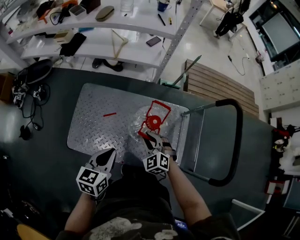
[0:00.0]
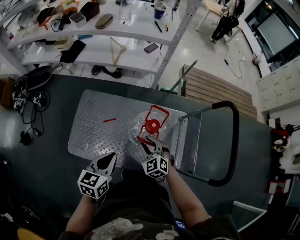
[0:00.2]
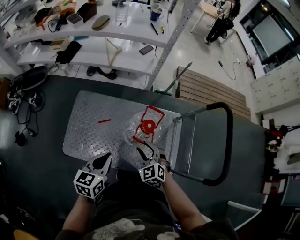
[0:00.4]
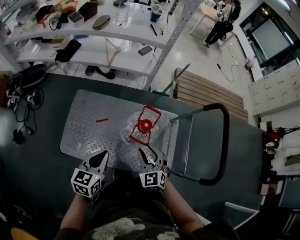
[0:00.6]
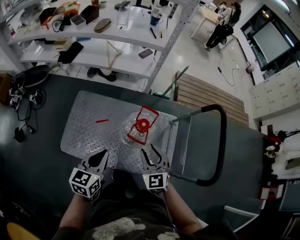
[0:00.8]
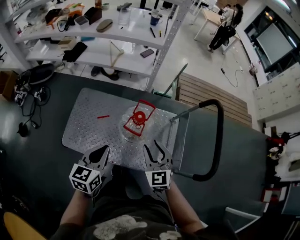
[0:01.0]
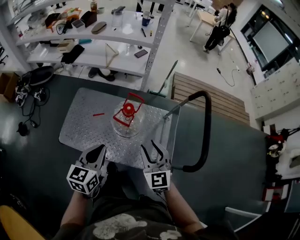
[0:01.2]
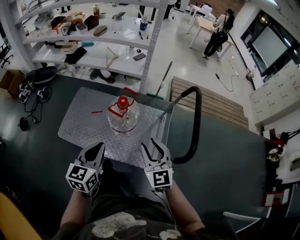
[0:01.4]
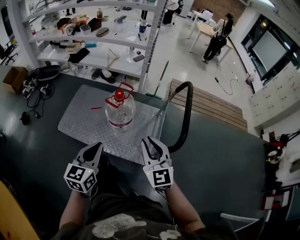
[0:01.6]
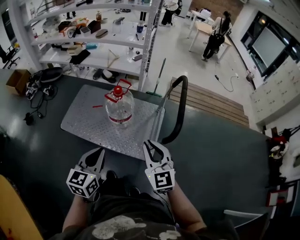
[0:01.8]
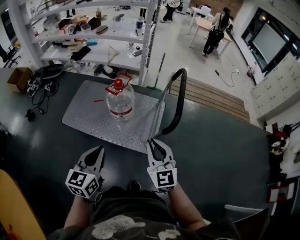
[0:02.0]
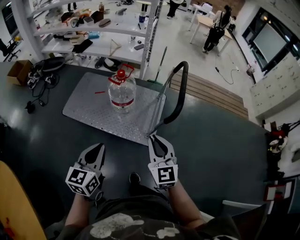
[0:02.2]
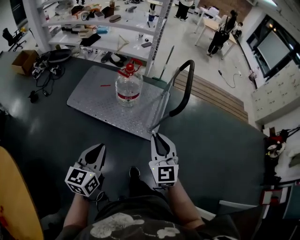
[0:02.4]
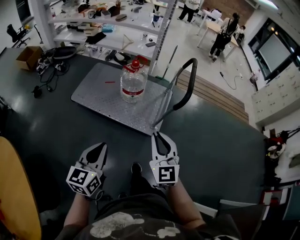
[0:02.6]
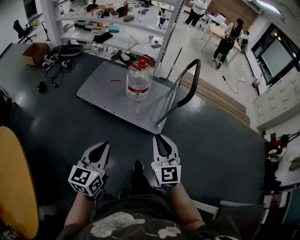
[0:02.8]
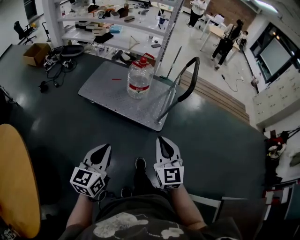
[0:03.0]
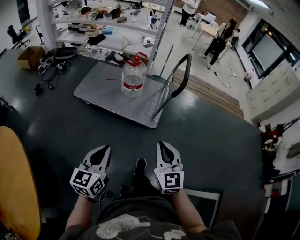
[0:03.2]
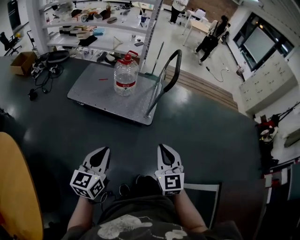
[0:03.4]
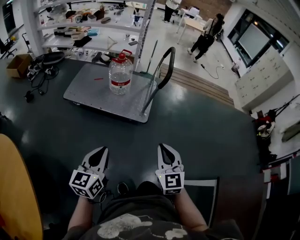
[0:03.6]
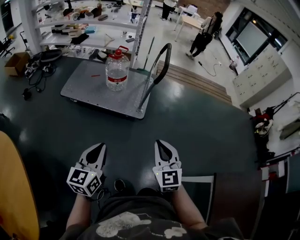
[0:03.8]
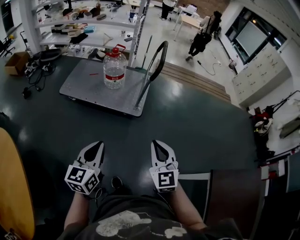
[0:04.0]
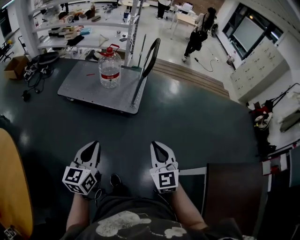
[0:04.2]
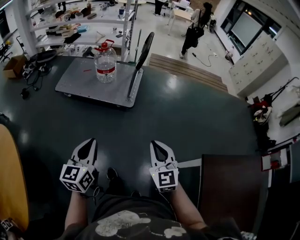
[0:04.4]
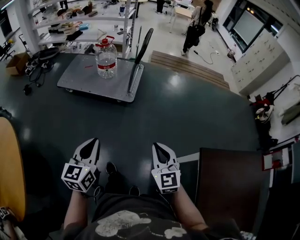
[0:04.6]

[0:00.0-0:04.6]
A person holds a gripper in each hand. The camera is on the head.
0:00.0 to 0:01.6: The right gripper heads backward, upward and to the right, covering some 50 cm, and points its fingers roughly 30 degrees further upward; the left gripper heads backward, to the right and upward, covering roughly 35 cm, and rotates about 20 degrees.
0:01.6 to 0:03.0: Both grippers move backward, about 40 cm.
0:03.0 to 0:04.6: Both grippers travel together backward and to the right, approximately 35 cm.

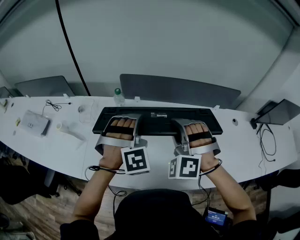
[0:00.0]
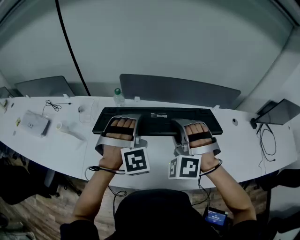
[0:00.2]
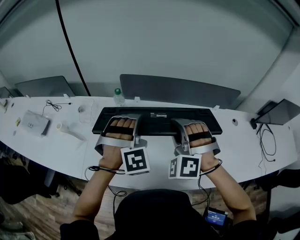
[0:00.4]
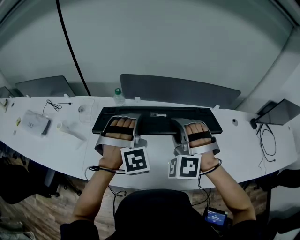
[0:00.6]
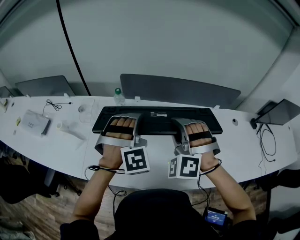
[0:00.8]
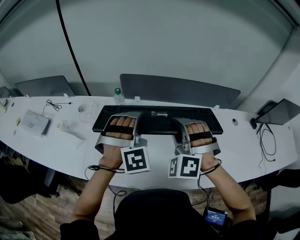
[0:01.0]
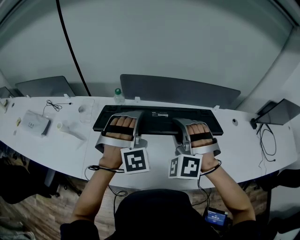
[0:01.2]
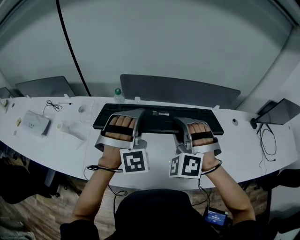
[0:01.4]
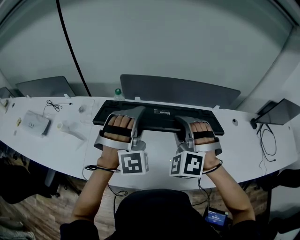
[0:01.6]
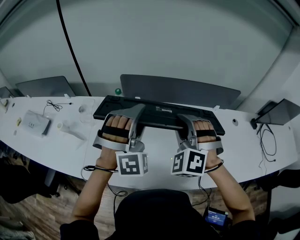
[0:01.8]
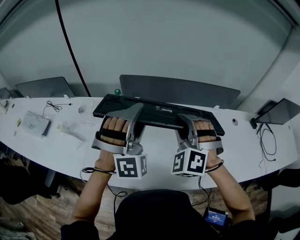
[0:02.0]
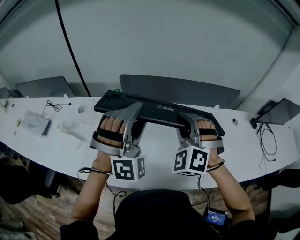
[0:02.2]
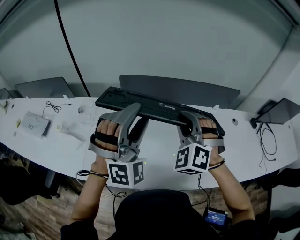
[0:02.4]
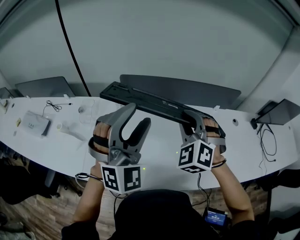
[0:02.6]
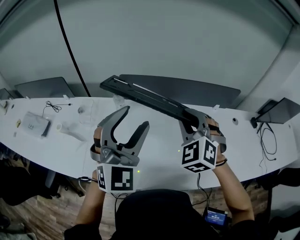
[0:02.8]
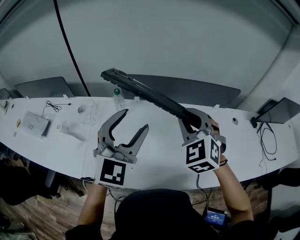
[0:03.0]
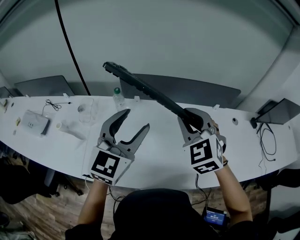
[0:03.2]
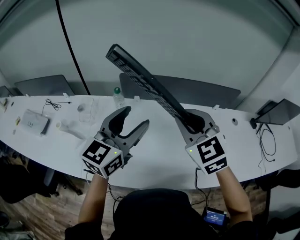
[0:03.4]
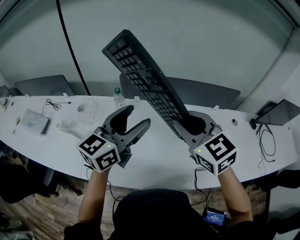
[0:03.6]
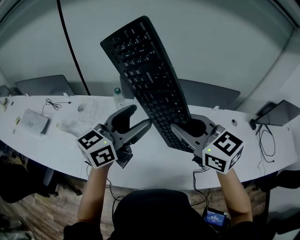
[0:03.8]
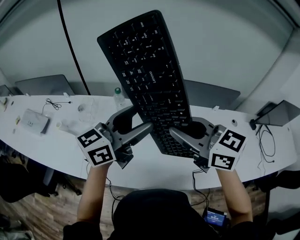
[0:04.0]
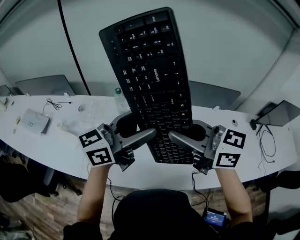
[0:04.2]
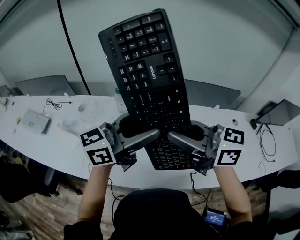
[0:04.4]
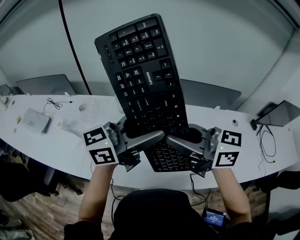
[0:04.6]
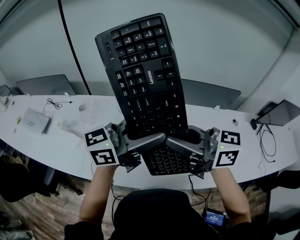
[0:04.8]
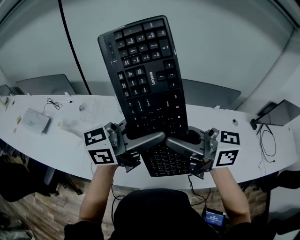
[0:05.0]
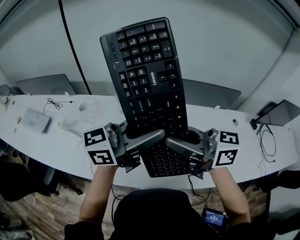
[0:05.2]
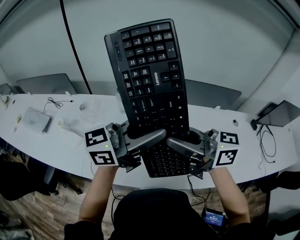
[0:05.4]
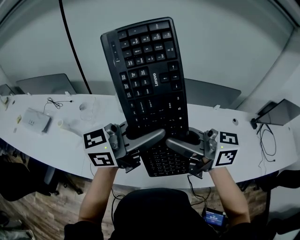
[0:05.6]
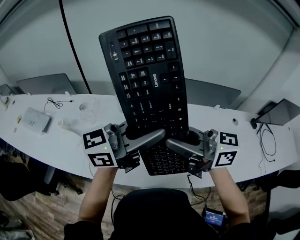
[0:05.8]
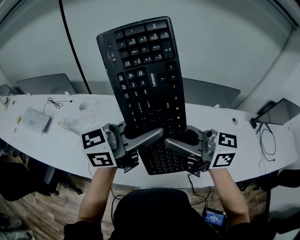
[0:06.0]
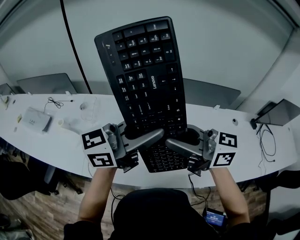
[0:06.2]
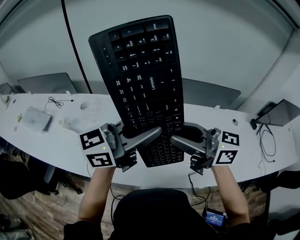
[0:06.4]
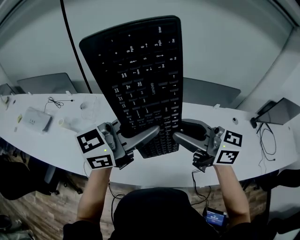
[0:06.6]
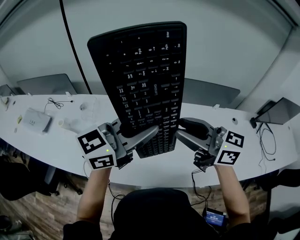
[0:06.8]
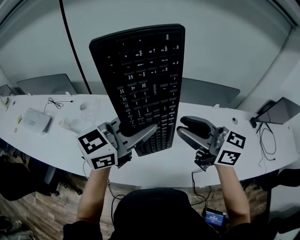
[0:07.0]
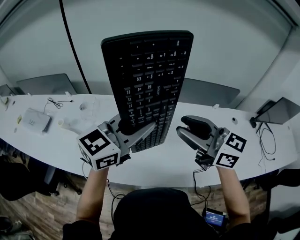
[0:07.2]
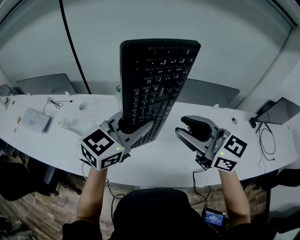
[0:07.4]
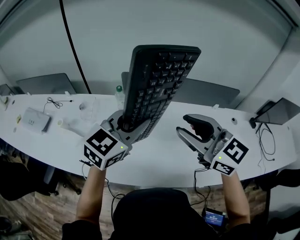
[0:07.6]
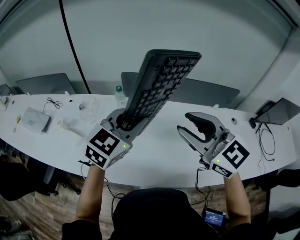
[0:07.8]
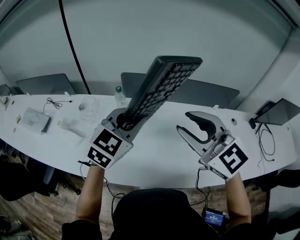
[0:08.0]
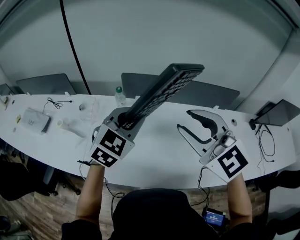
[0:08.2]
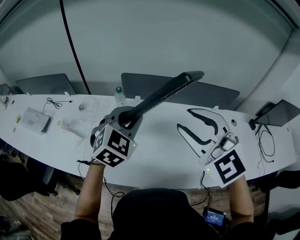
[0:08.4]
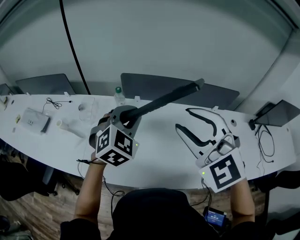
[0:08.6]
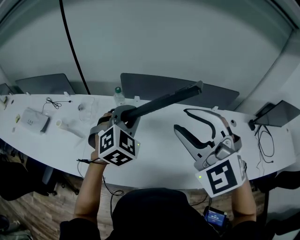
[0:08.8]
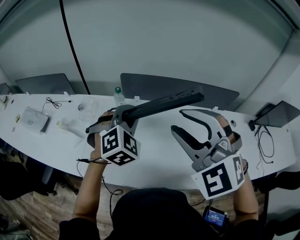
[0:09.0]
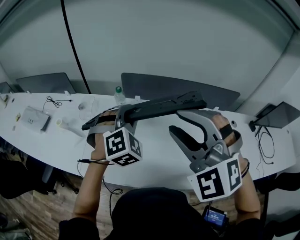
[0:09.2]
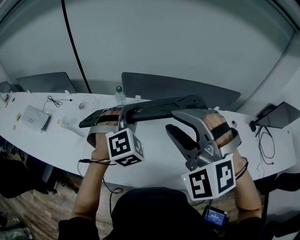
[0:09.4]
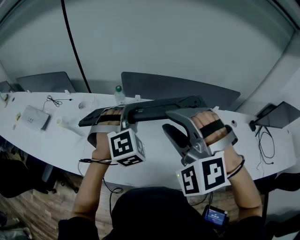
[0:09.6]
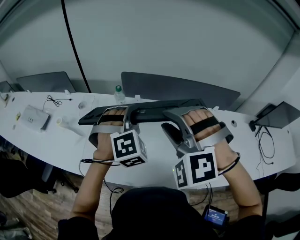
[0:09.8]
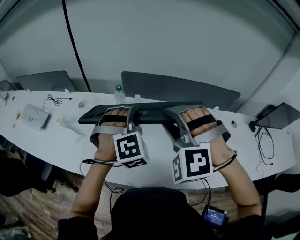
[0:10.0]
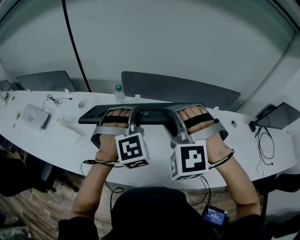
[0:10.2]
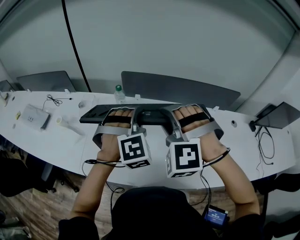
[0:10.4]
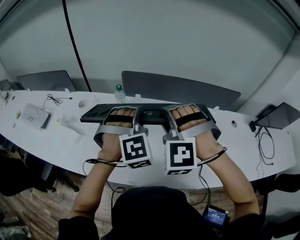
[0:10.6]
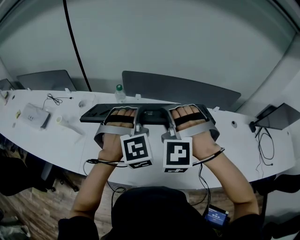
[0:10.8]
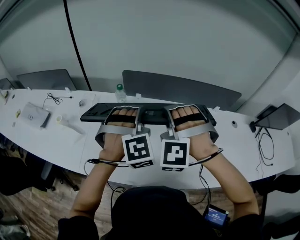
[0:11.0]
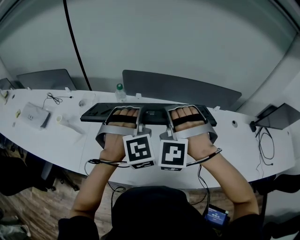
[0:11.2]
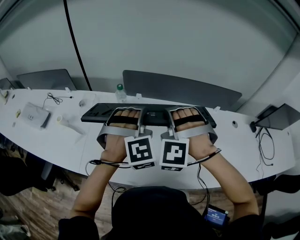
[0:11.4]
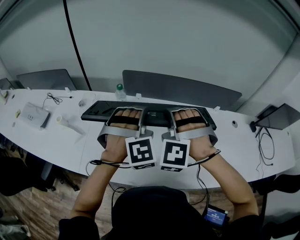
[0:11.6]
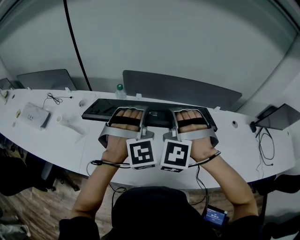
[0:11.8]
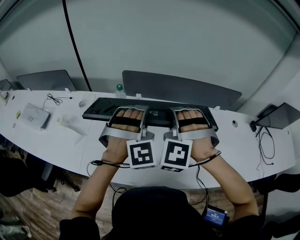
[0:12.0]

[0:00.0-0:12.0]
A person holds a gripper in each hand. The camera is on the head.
0:00.0 to 0:01.6: There are only small adjustments of the grippers.
0:01.6 to 0:03.0: The left gripper shifts approximately 5 cm upward, and rotates around the line of its fingers by some 50 degrees, counterclockwise from behind. Meanwhile the right gripper changes its angle by roughly 30 degrees.
0:03.0 to 0:04.4: The right gripper moves some 15 cm, and swivels roughly 80 degrees. The left gripper shifts by roughly 5 cm, and changes its angle by some 60 degrees.
0:04.4 to 0:06.0: The left gripper closes.
0:06.0 to 0:07.6: The right gripper ends up approximately 5 cm from where it was, and changes its angle by roughly 40 degrees; the left gripper moves about 10 cm, and rotates some 40 degrees.
0:07.6 to 0:09.0: The right gripper changes place by approximately 5 cm, and rotates around the line of its fingers by some 50 degrees, counterclockwise from behind. Meanwhile the left gripper heads downward, covering about 5 cm, and rotates approximately 50 degrees.
0:09.0 to 0:10.4: The left gripper changes its angle by some 20 degrees, while the right gripper is displaced downward and forward by approximately 10 cm, and changes its angle by some 30 degrees.
0:10.4 to 0:12.0: There are only small adjustments of the grippers.

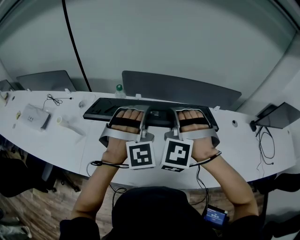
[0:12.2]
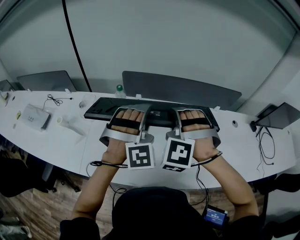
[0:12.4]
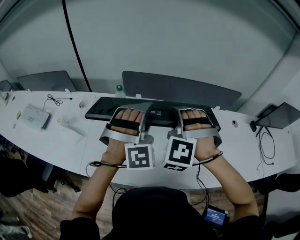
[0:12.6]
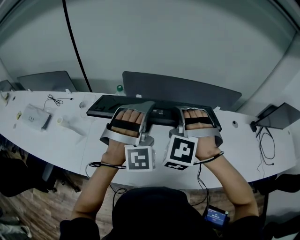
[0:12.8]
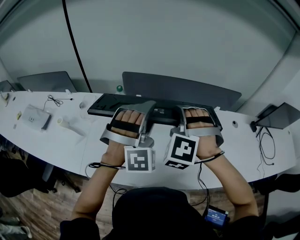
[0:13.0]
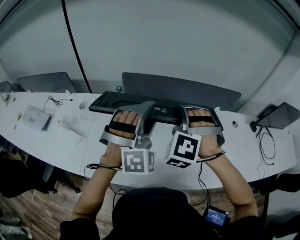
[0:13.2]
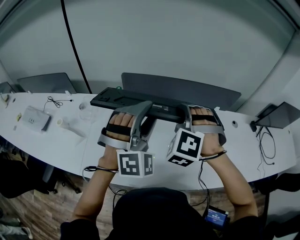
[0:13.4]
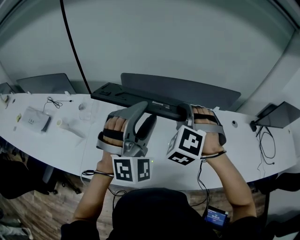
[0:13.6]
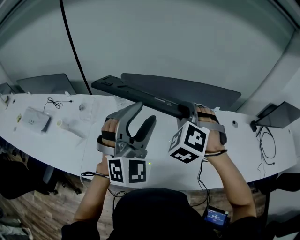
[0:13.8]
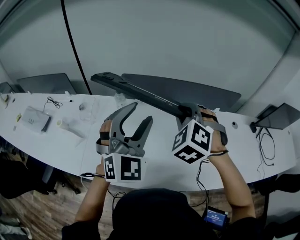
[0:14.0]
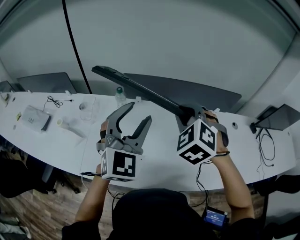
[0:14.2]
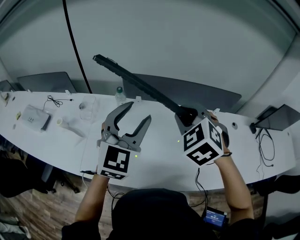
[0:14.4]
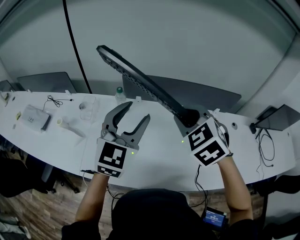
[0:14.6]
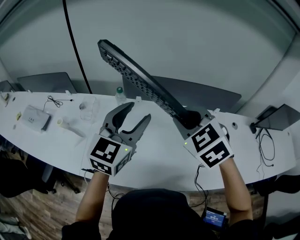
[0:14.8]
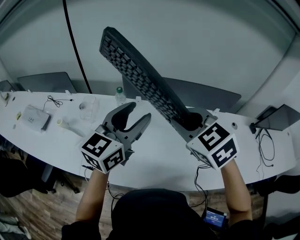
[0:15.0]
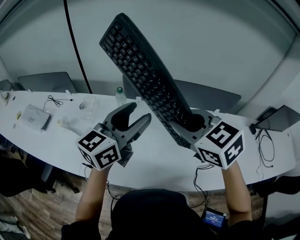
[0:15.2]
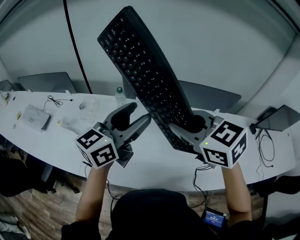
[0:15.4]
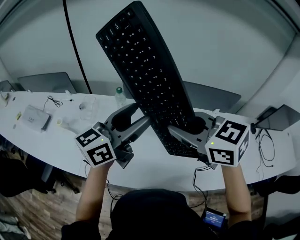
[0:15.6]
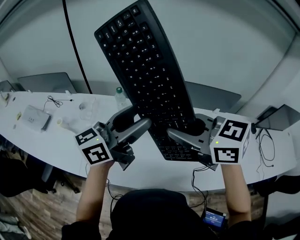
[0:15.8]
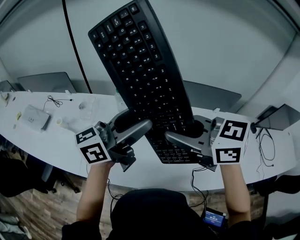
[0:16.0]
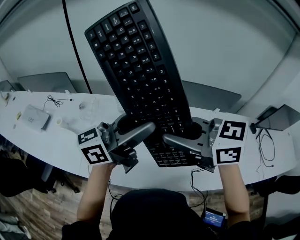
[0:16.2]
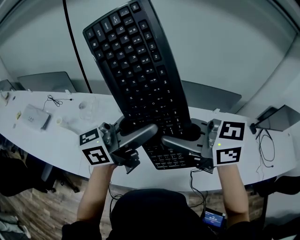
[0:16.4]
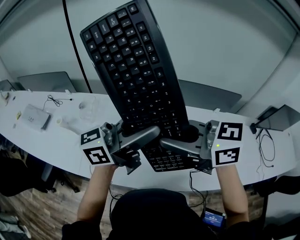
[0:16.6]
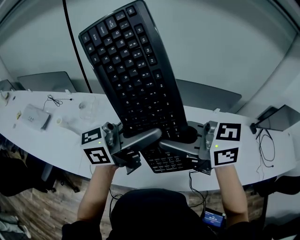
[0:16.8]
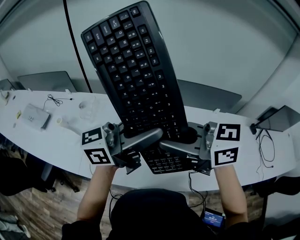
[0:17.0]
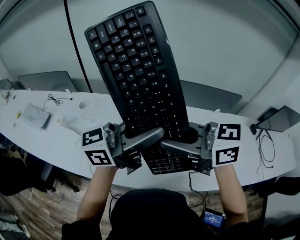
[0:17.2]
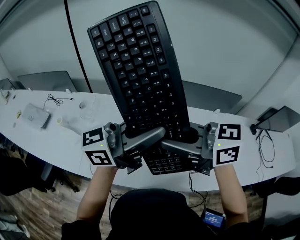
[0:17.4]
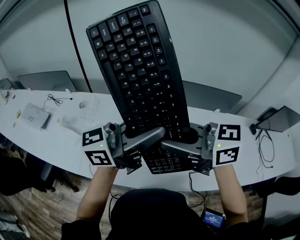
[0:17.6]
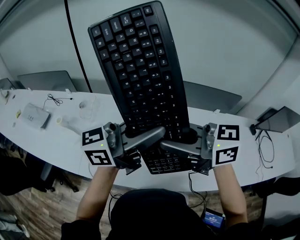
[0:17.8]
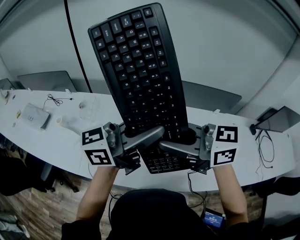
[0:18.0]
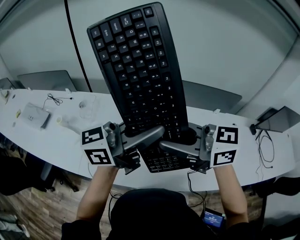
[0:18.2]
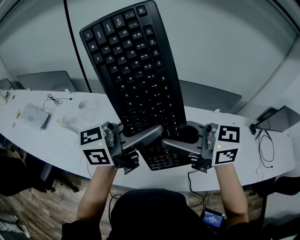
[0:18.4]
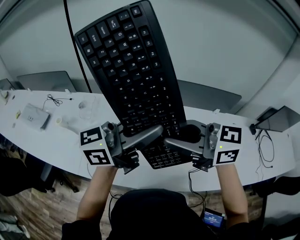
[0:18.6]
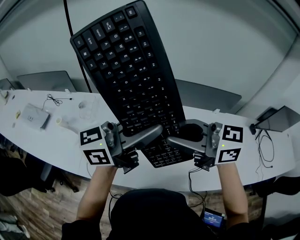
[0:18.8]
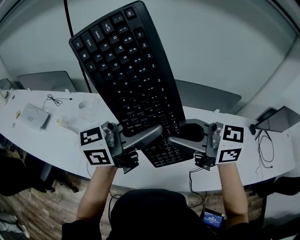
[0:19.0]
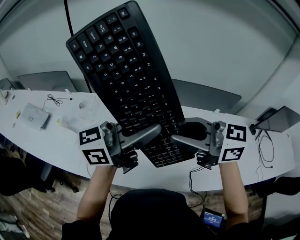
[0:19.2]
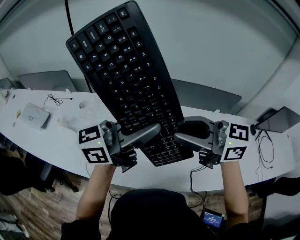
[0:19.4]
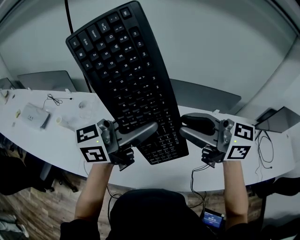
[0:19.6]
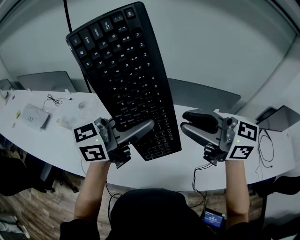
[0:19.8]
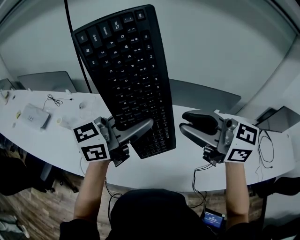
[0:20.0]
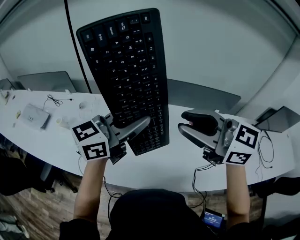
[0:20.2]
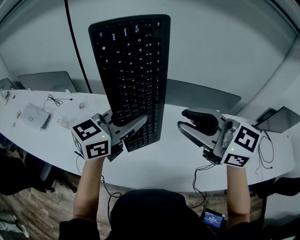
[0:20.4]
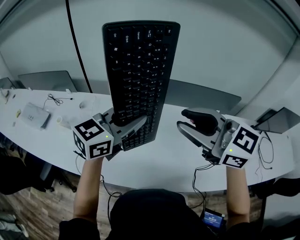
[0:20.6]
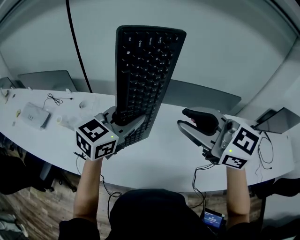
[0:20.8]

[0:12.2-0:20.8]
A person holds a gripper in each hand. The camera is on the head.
0:12.2 to 0:13.6: The right gripper changes place by roughly 5 cm, while the left gripper shifts about 5 cm upward, and swivels about 30 degrees.
0:13.6 to 0:15.0: The left gripper twists roughly 70 degrees counterclockwise, seen from behind. The right gripper moves backward, about 5 cm, and rotates some 50 degrees.
0:15.0 to 0:16.6: The left gripper moves roughly 5 cm, and swivels about 40 degrees; the right gripper shifts by approximately 10 cm, and turns by about 50 degrees.
0:16.6 to 0:18.0: The left gripper closes its fingers.
0:18.0 to 0:19.4: The right gripper ends up about 5 cm from where it was.
0:19.4 to 0:20.8: The left gripper goes some 5 cm downward, and turns by about 40 degrees. Meanwhile the right gripper swivels some 20 degrees.
